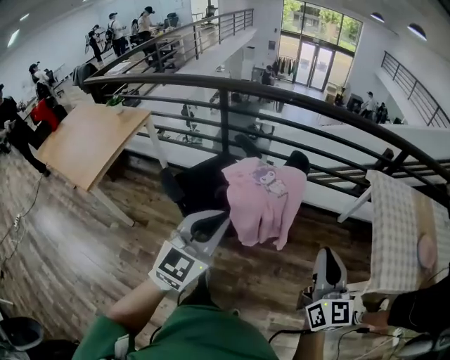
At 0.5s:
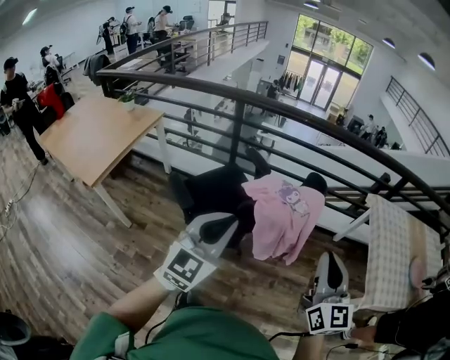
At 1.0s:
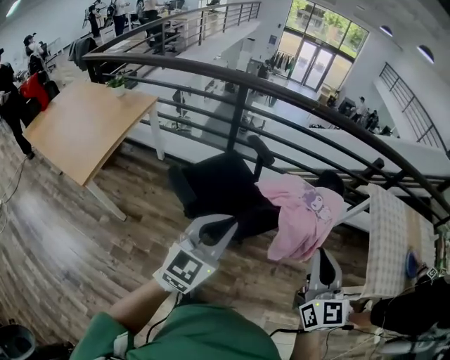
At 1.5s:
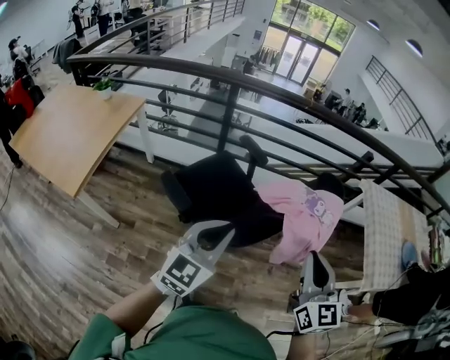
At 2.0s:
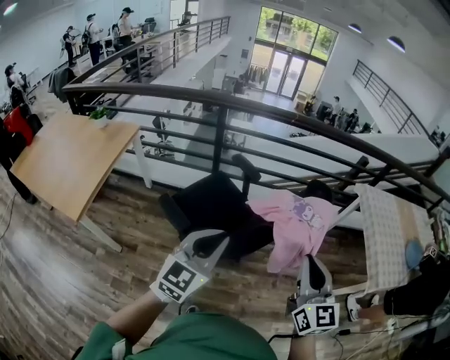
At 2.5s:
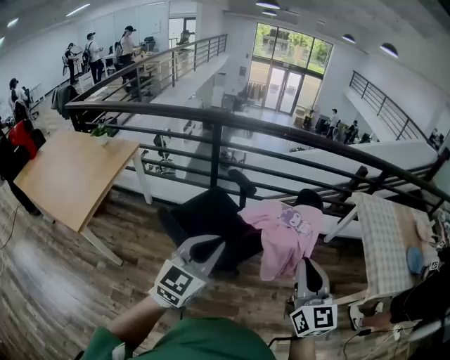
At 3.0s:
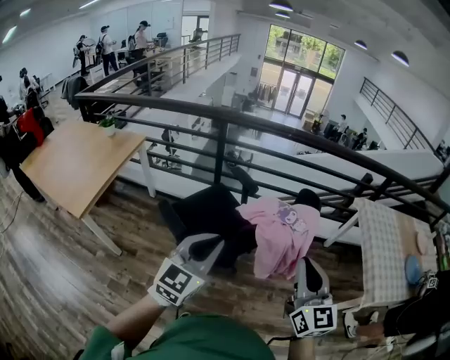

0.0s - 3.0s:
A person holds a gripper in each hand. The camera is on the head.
0.0s - 1.5s: Both grippers move to the left, about 20 cm.
1.5s - 3.0s: The right gripper moves to the right, roughly 5 cm; the left gripper changes place by approximately 5 cm.

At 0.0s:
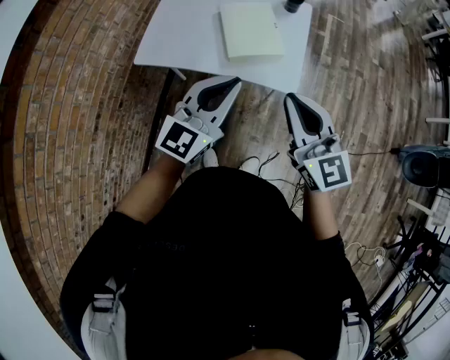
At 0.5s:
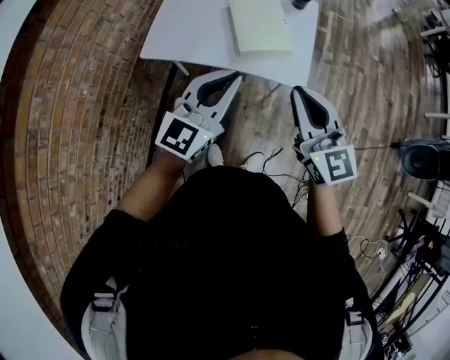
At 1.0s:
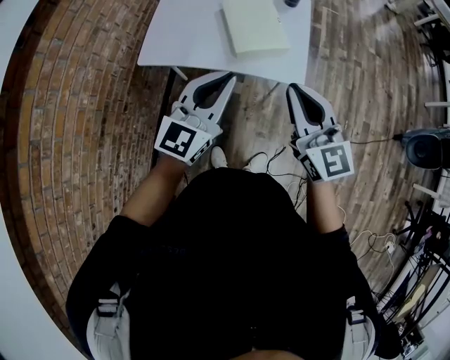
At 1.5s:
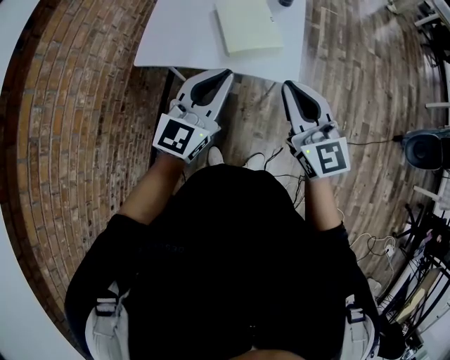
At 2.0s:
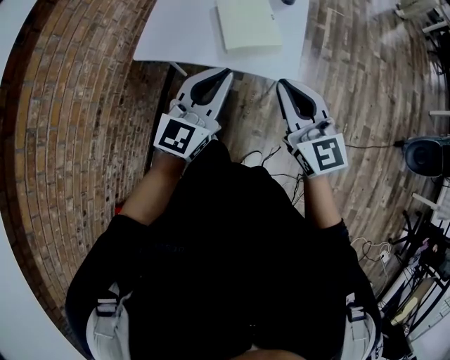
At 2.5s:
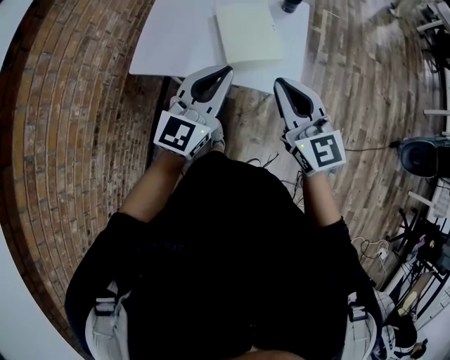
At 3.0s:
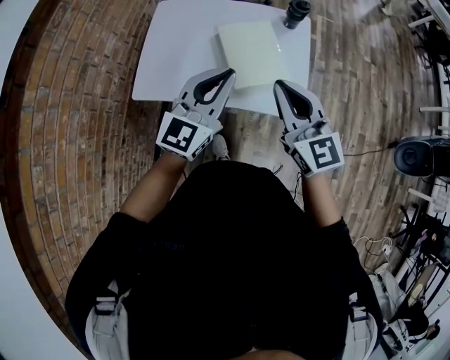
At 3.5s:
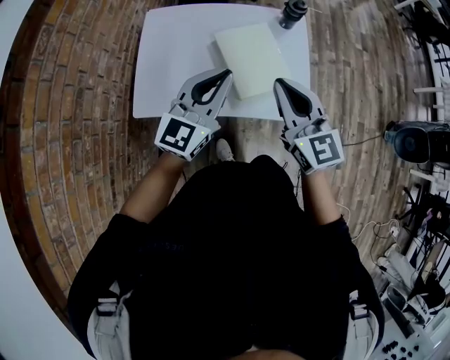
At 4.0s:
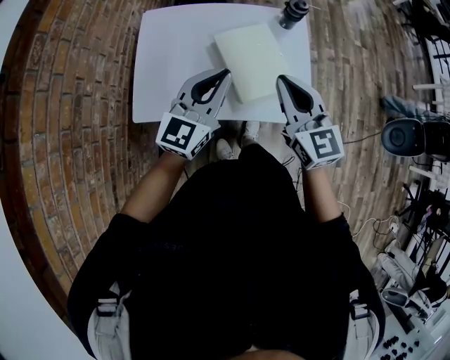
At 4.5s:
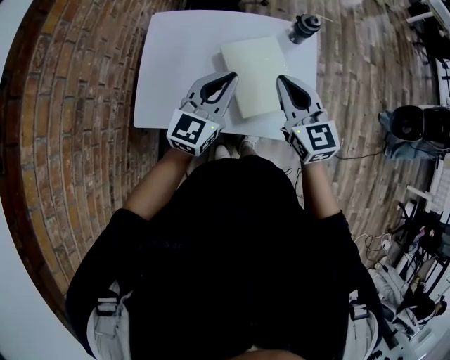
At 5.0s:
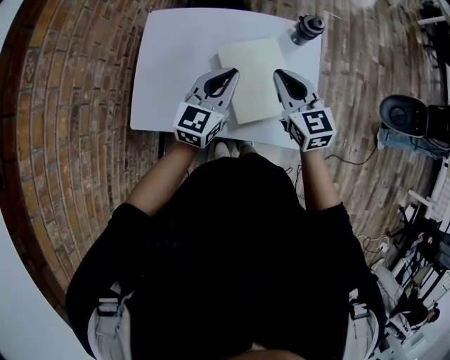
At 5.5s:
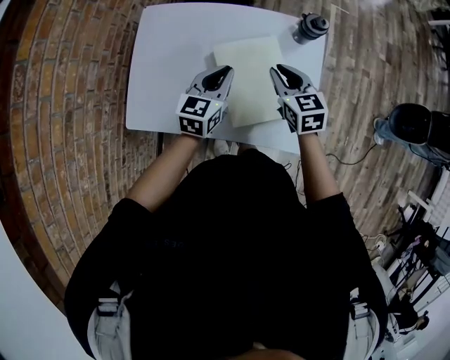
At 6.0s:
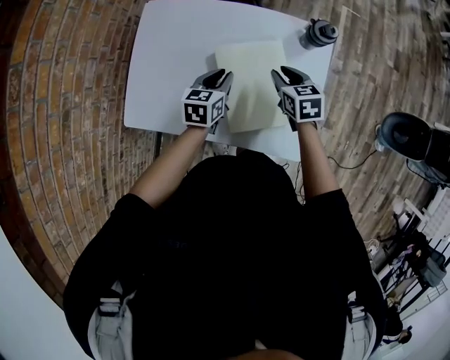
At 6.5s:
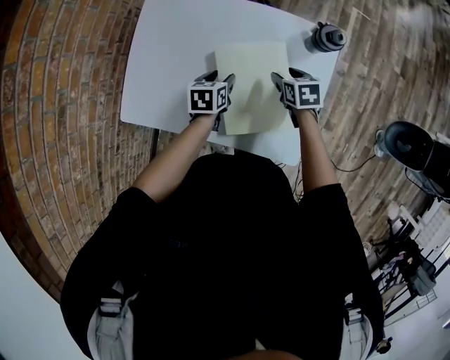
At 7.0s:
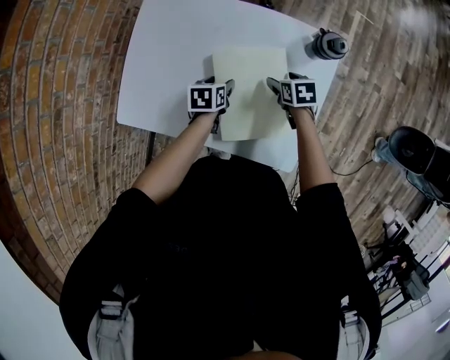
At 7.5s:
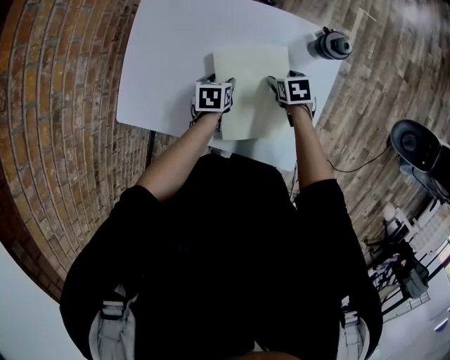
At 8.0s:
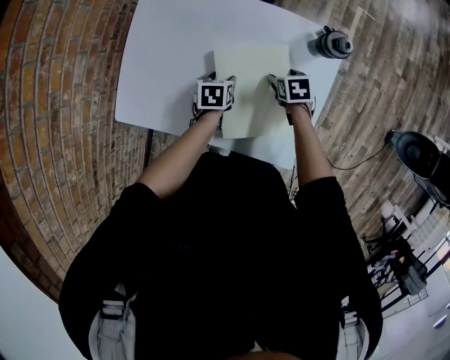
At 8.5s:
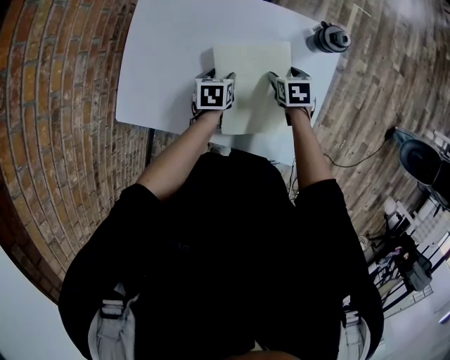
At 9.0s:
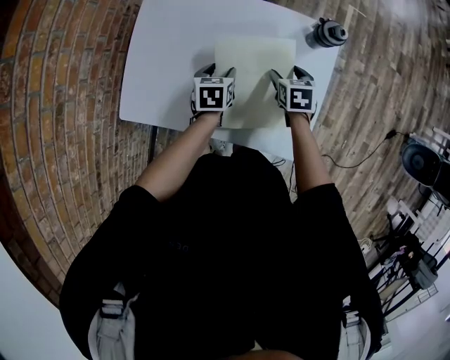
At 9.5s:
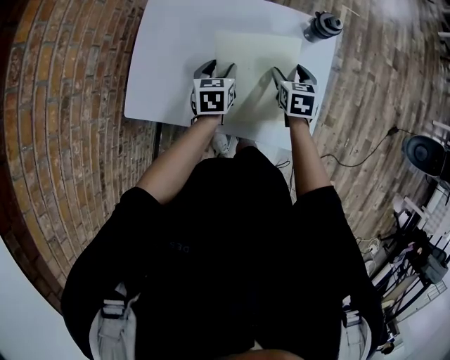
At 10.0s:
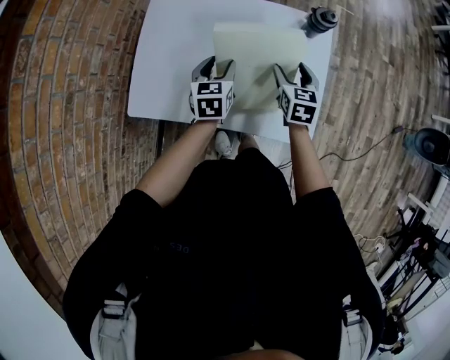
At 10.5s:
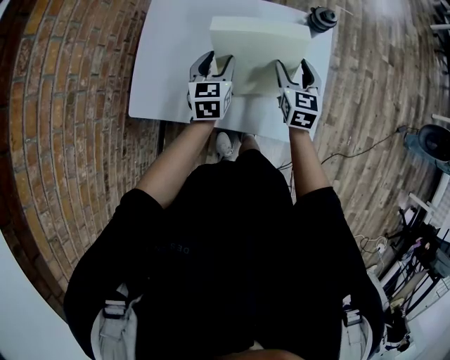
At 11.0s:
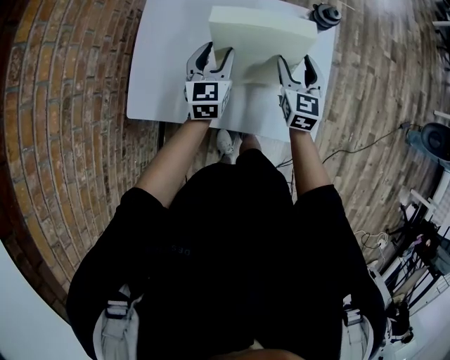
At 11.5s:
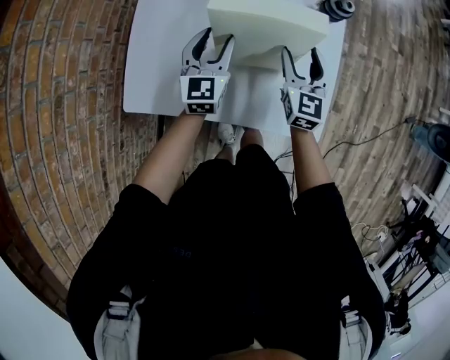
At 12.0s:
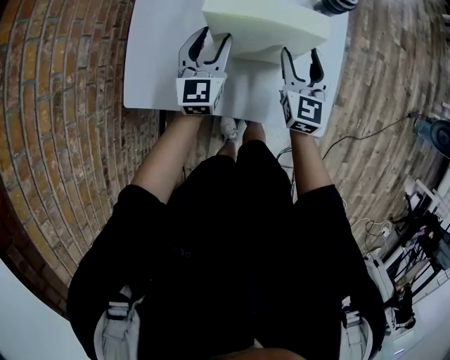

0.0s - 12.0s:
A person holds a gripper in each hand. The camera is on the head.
2.0s - 4.0s: The two grippers go about 30 cm forward and to the left.
4.0s - 6.0s: Both grippers move downward and forward, about 30 cm. The right gripper angles its fingers downward, by roughly 40 degrees, while the left gripper angles its fingers downward, by approximately 40 degrees.
6.0s - 8.0s: Both grippers travel together downward, about 15 cm. The right gripper rotates about 20 degrees, and opens up; the left gripper turns by about 30 degrees, and opens.
8.0s - 10.0s: The right gripper moves upward and backward, approximately 20 cm, and angles its fingers upward, by some 30 degrees; the left gripper shifts approximately 15 cm upward, and swivels roughly 30 degrees.
10.0s - 12.0s: The right gripper changes its angle by approximately 20 degrees. The left gripper swivels roughly 30 degrees.

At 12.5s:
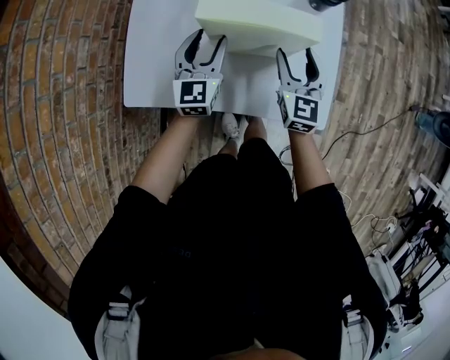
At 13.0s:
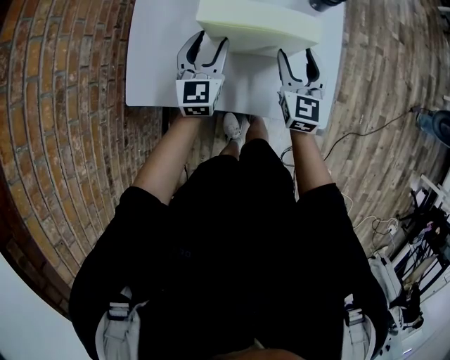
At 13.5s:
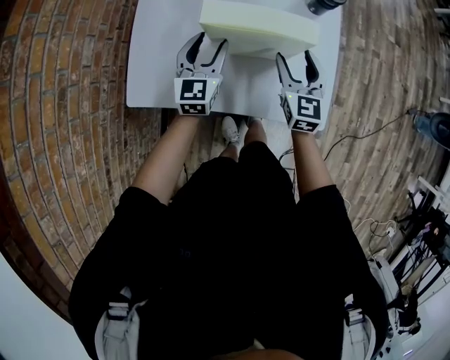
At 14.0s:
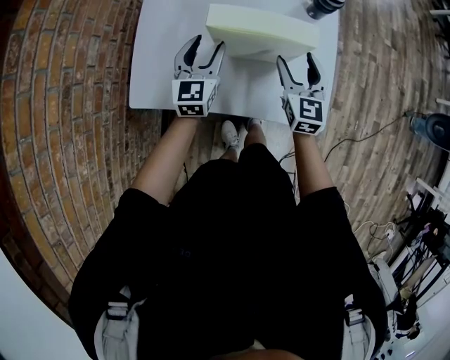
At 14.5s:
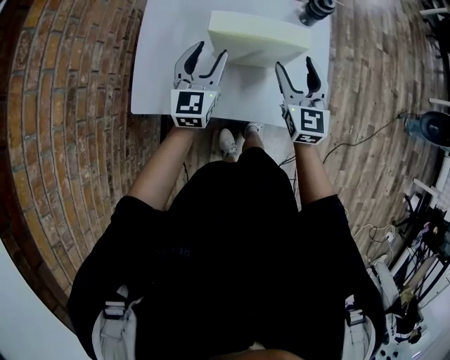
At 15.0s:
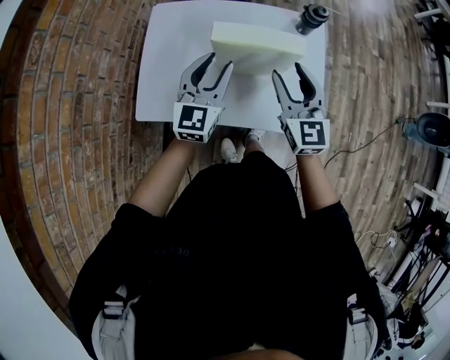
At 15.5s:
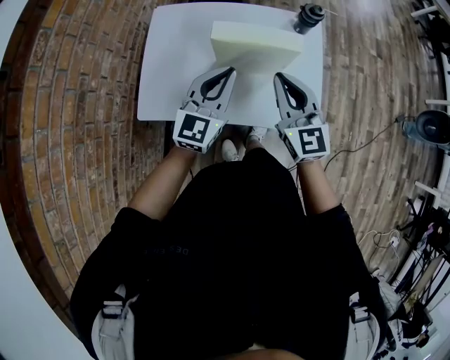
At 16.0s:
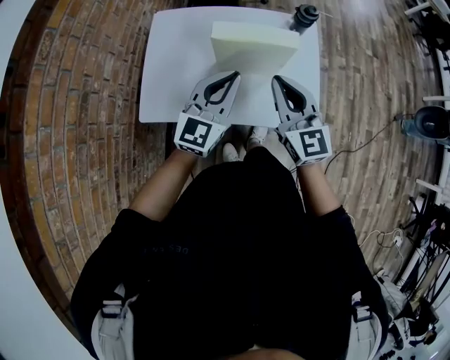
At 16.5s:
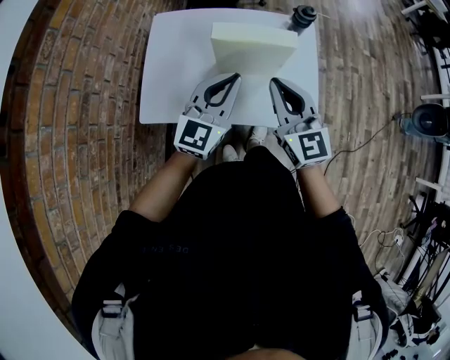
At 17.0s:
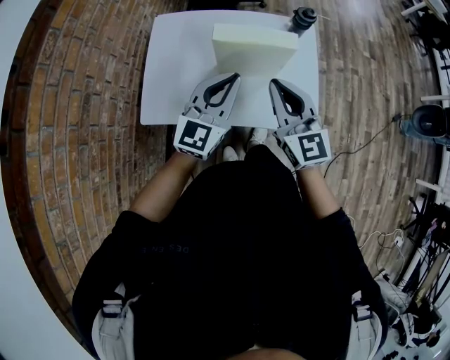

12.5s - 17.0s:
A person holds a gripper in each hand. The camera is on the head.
12.5s - 14.5s: The grippers both shift upward by some 5 cm.
14.5s - 17.0s: The right gripper moves backward, upward and to the left, roughly 15 cm, and closes its fingers. Meanwhile the left gripper heads backward, upward and to the right, covering about 15 cm, swivels approximately 20 degrees, and closes up.

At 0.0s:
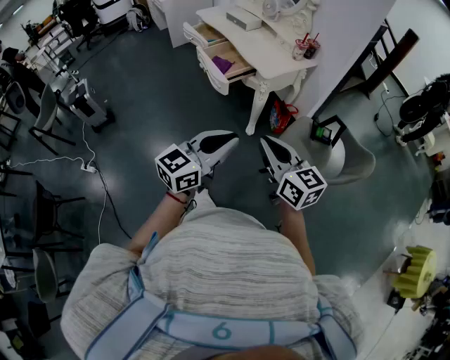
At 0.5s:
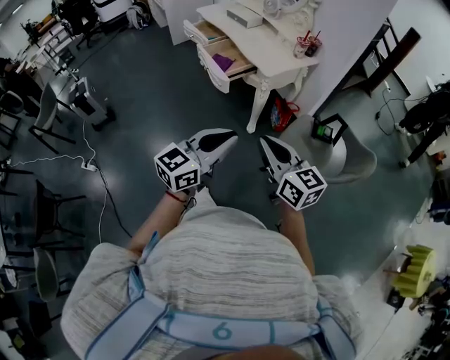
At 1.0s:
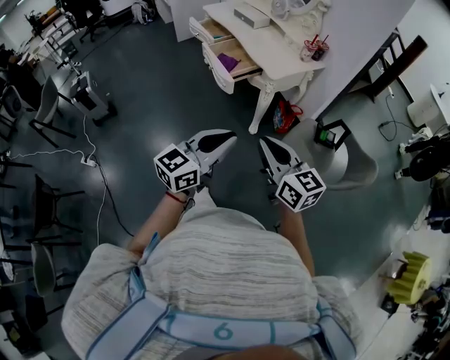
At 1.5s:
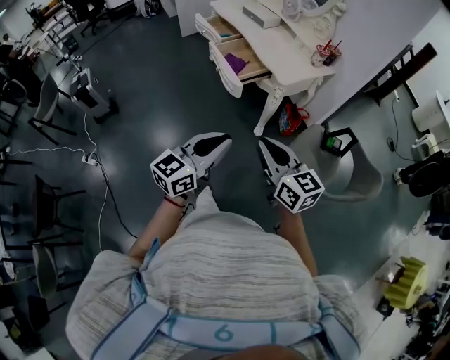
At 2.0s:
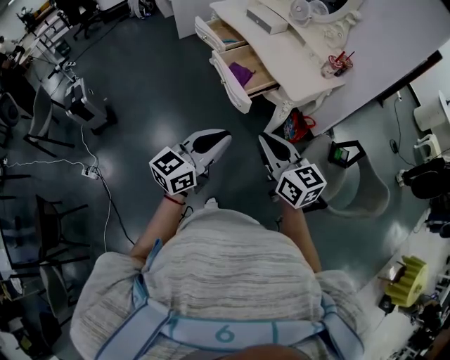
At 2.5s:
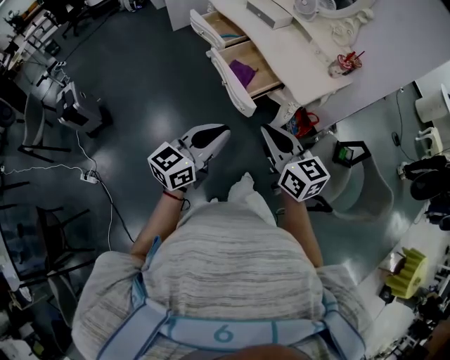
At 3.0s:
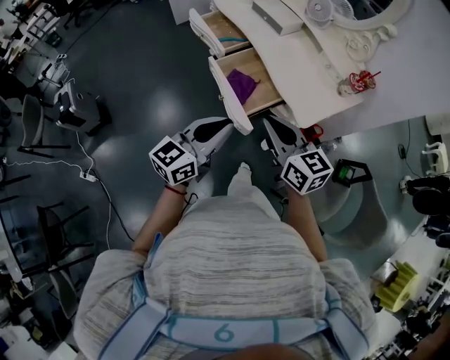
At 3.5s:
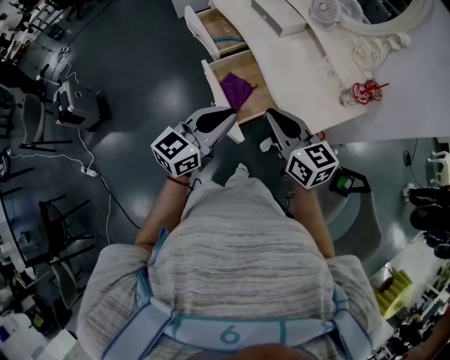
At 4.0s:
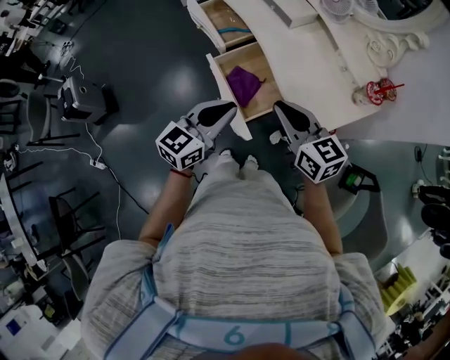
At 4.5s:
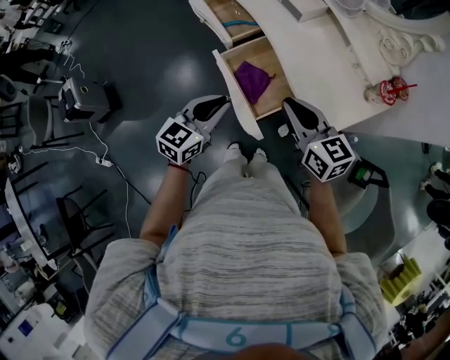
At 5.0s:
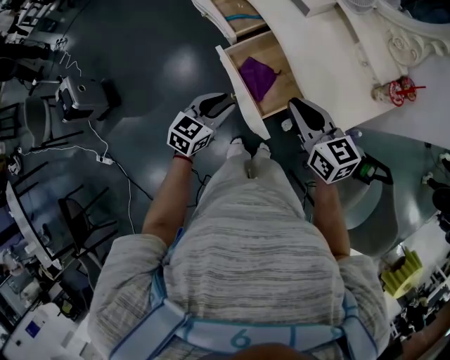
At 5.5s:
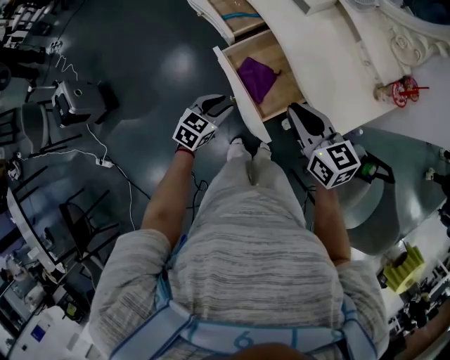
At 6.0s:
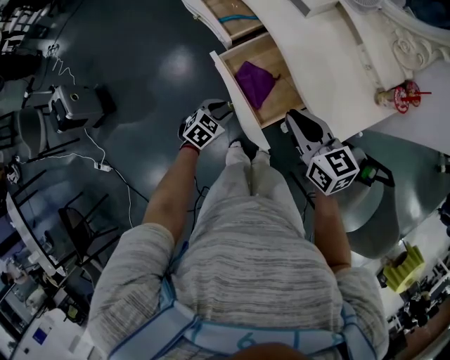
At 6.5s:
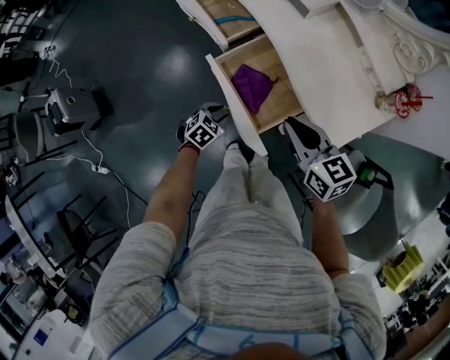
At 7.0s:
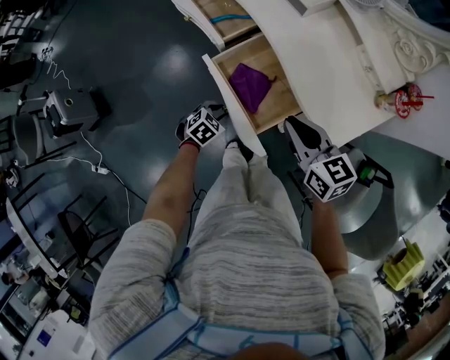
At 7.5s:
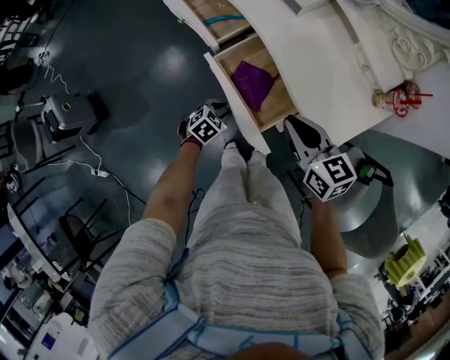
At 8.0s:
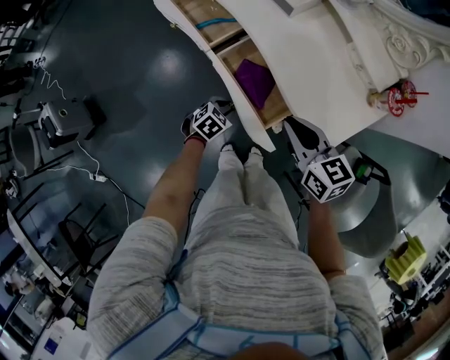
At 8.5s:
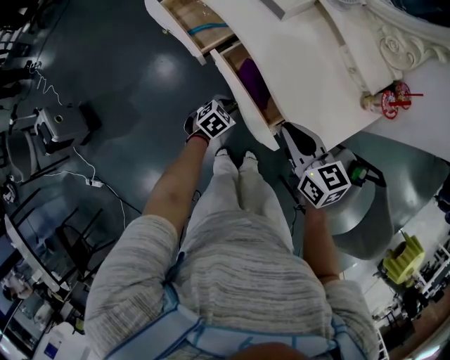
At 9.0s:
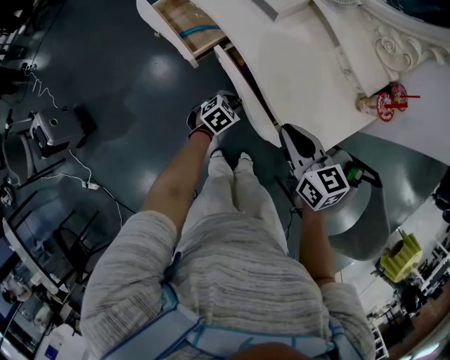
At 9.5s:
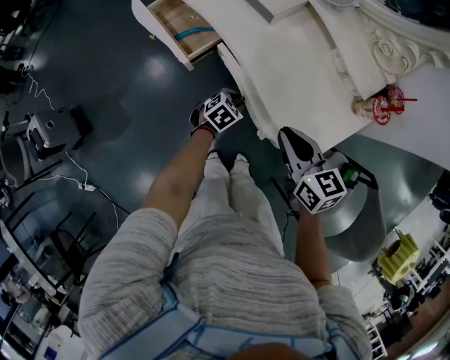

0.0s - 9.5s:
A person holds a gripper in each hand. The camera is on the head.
0.0s - 2.0s: Both grippers travel together forward and to the left, roughly 25 cm.
2.0s - 4.0s: Both grippers move forward, some 40 cm.
4.0s - 5.5s: The left gripper goes approximately 20 cm downward, changes its angle by approximately 30 degrees, and opens its fingers. The right gripper moves downward, approximately 5 cm.
5.5s - 7.5s: The left gripper is displaced downward by approximately 15 cm, and turns by about 30 degrees; the right gripper ends up about 5 cm from where it was.
7.5s - 9.5s: The right gripper travels to the right by about 5 cm; the left gripper travels forward and to the right by about 15 cm.
